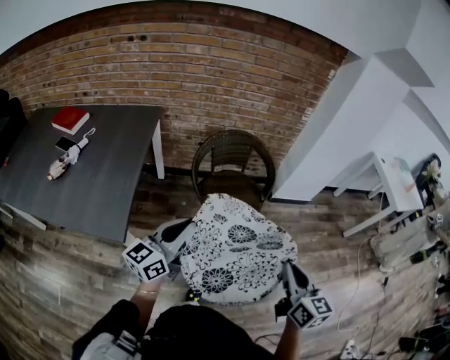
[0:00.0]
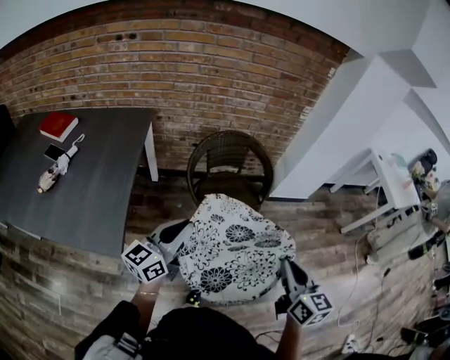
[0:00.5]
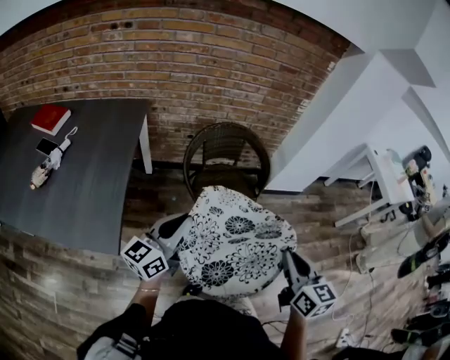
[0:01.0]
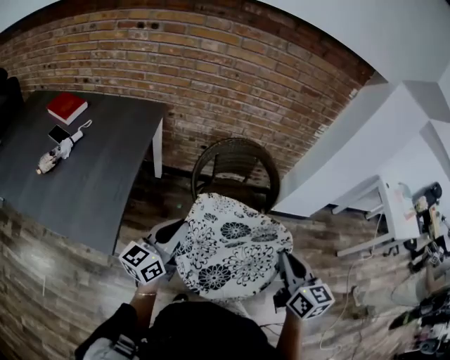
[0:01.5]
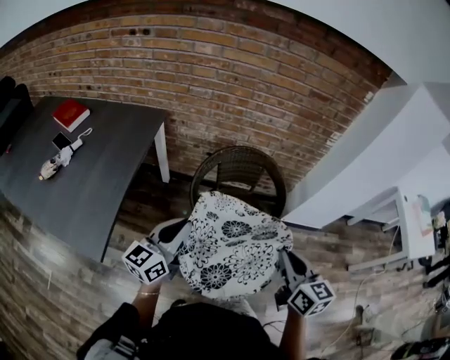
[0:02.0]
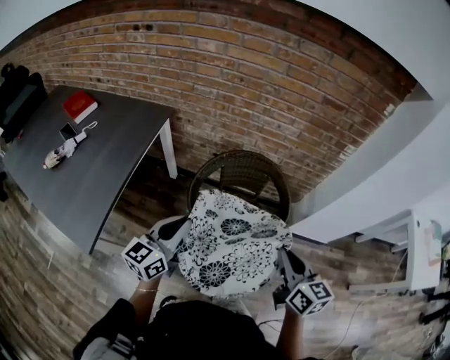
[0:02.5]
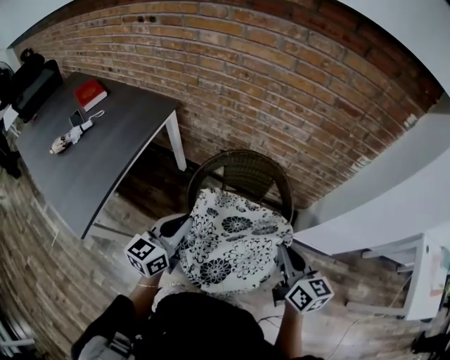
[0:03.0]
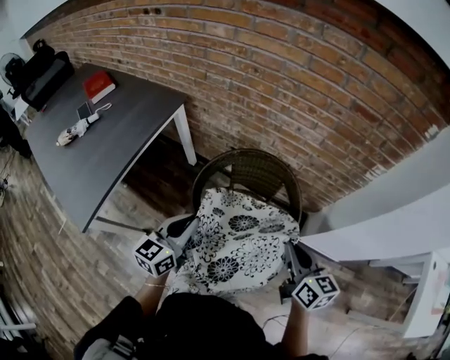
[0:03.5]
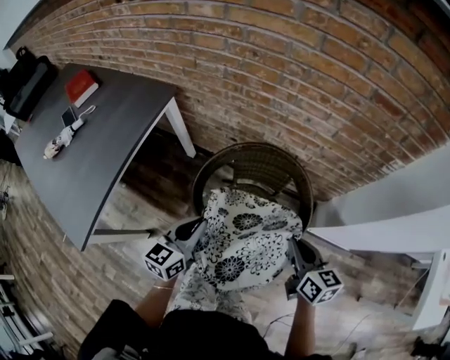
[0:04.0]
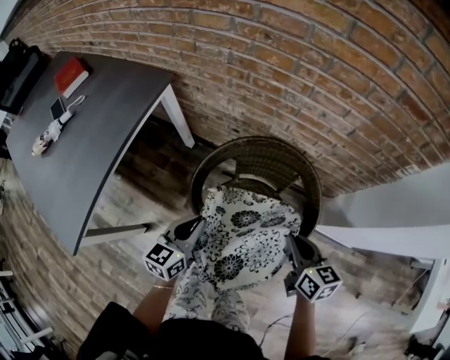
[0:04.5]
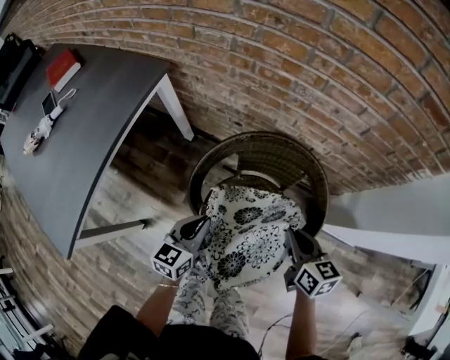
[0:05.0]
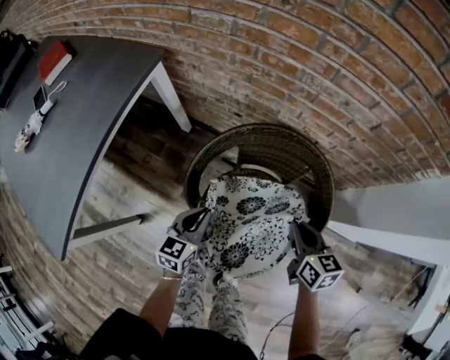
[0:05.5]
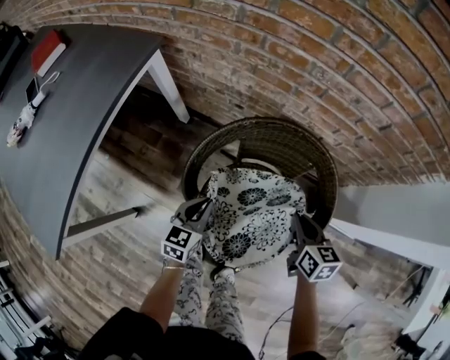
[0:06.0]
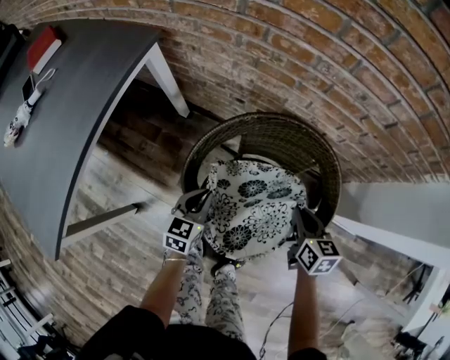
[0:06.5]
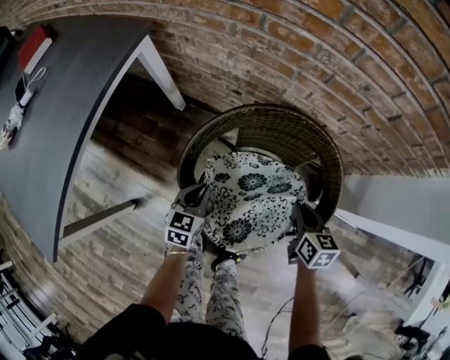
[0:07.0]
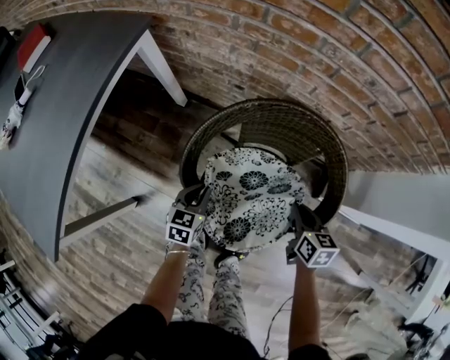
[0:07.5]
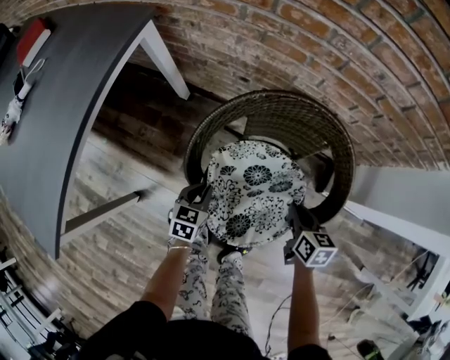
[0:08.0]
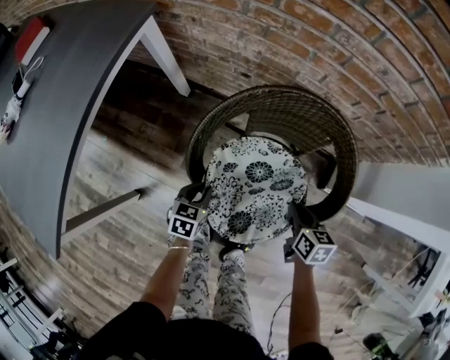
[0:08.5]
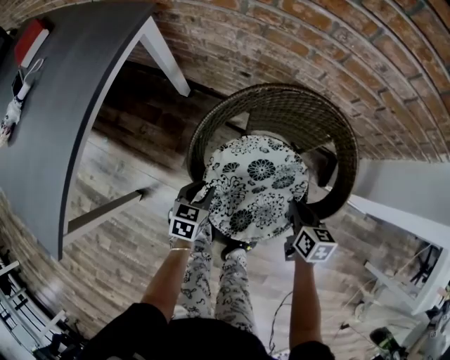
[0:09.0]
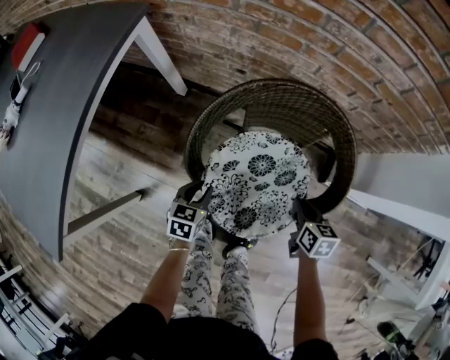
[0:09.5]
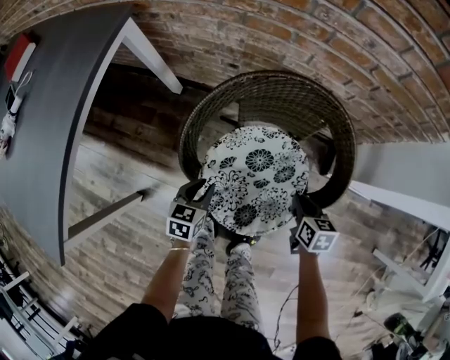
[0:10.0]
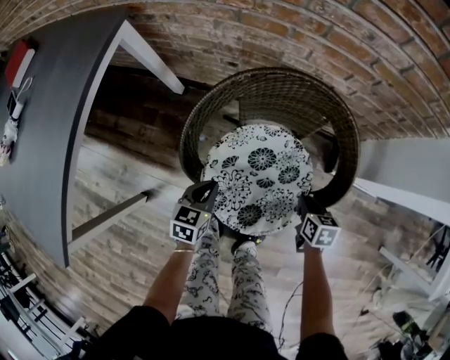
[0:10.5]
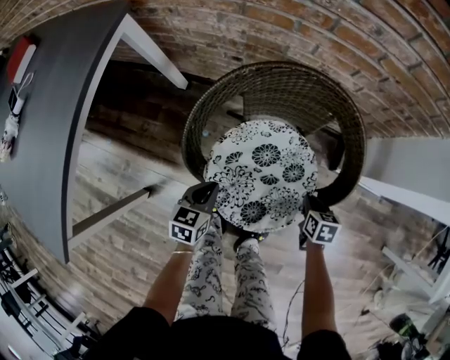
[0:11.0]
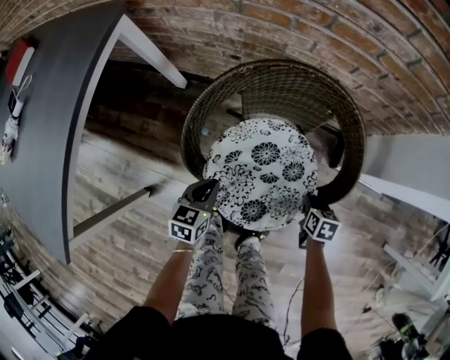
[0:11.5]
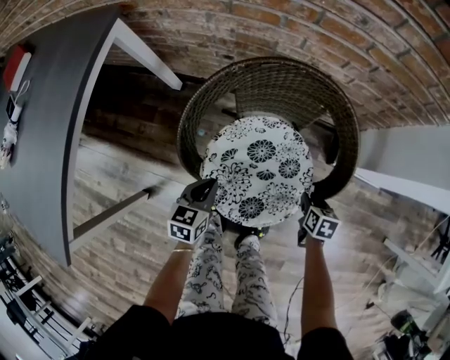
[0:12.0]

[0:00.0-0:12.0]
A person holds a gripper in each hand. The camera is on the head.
0:00.0 to 0:02.0: Both grippers travel together forward, roughly 20 cm.
0:02.0 to 0:04.0: The grippers both shift forward, downward and to the right by roughly 30 cm. The left gripper turns by some 20 degrees, while the right gripper turns by about 20 degrees.
0:04.0 to 0:06.0: The left gripper travels downward by approximately 25 cm, while the right gripper travels downward and forward by some 20 cm.
0:06.0 to 0:08.0: Both grippers travel together downward, roughly 10 cm.
0:08.0 to 0:10.0: The right gripper shifts by approximately 5 cm.
0:10.0 to 0:12.0: The right gripper travels to the right and downward by some 10 cm, and opens.

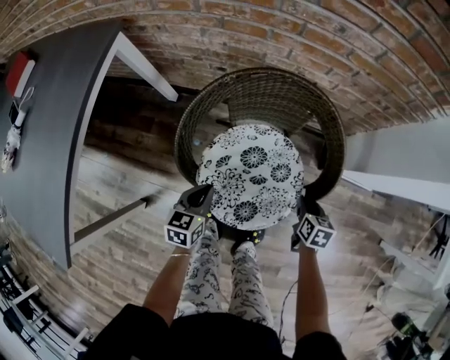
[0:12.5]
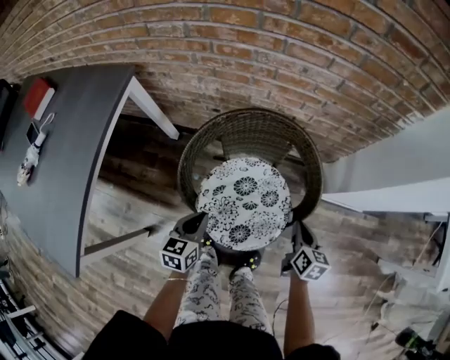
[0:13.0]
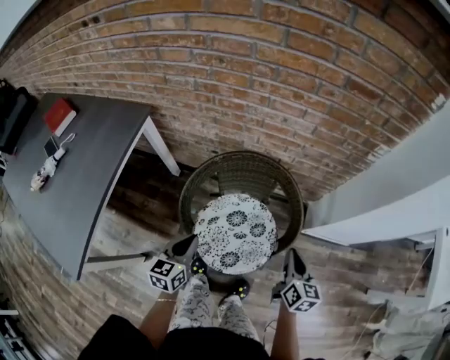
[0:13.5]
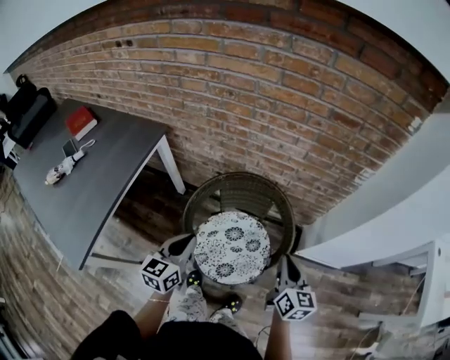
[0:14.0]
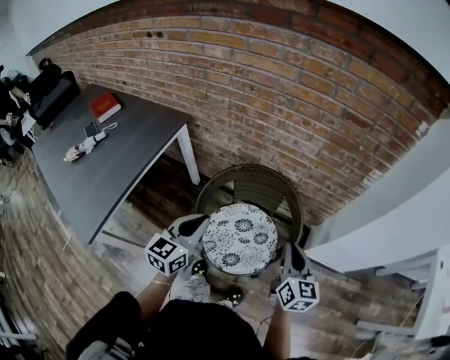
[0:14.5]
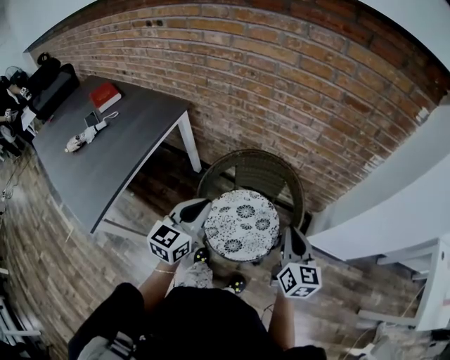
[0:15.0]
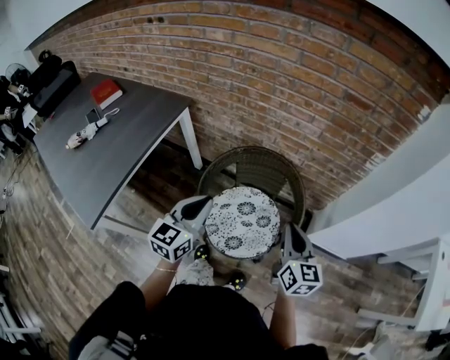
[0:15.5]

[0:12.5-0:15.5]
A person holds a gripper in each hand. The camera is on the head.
0:12.5 to 0:14.0: The grippers both shift upward by some 35 cm. The right gripper angles its fingers upward, by approximately 40 degrees; the left gripper turns by roughly 20 degrees.
0:14.0 to 0:15.5: The right gripper moves upward, approximately 5 cm. Meanwhile the left gripper heads upward, covering about 10 cm.

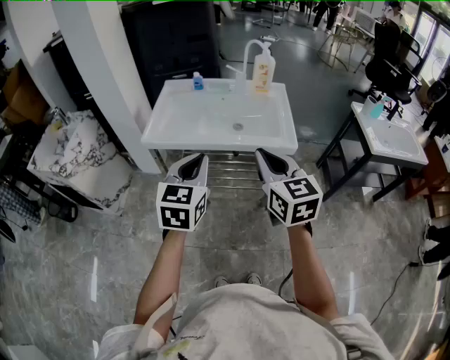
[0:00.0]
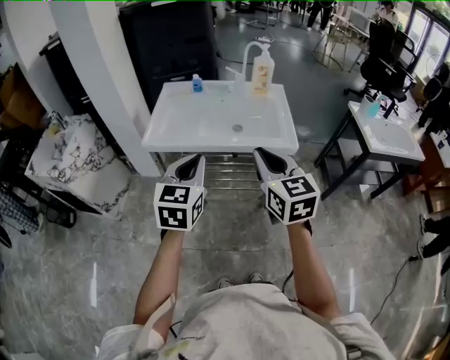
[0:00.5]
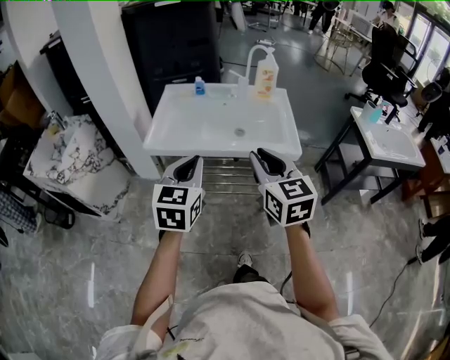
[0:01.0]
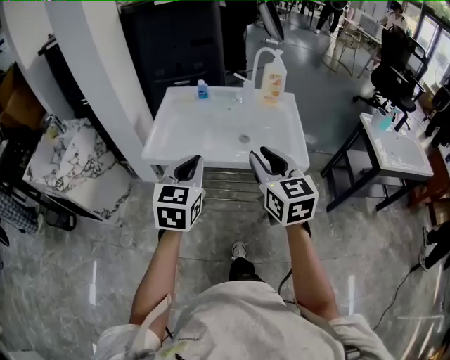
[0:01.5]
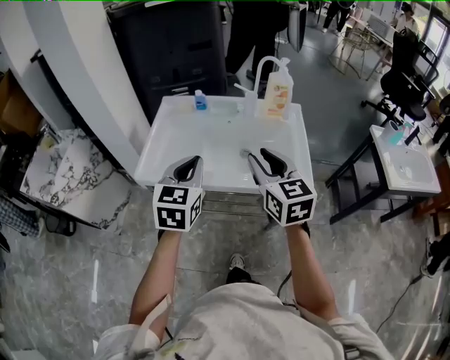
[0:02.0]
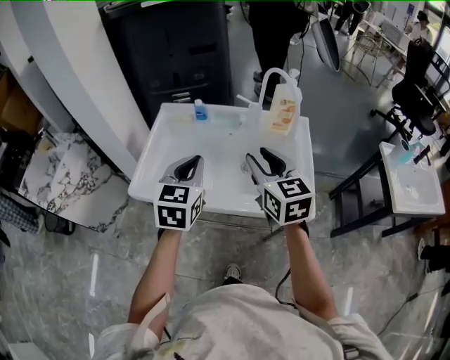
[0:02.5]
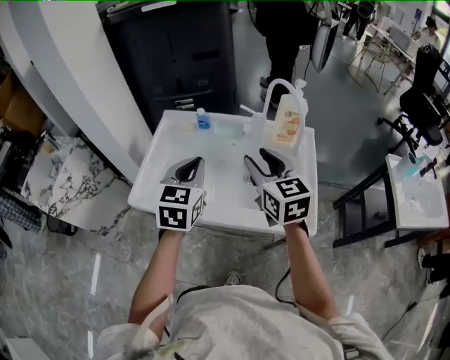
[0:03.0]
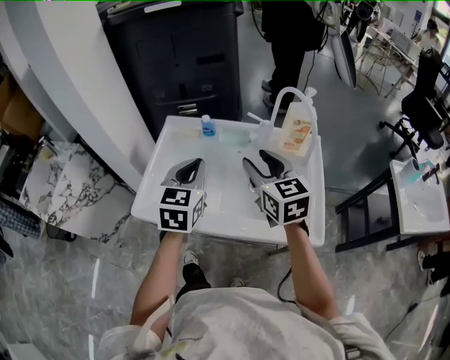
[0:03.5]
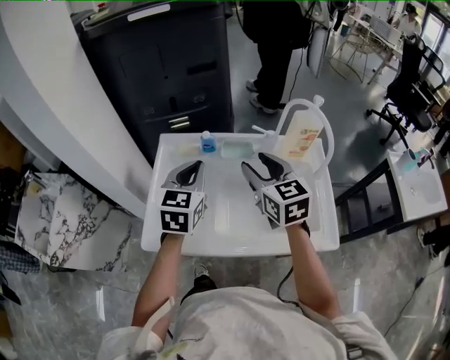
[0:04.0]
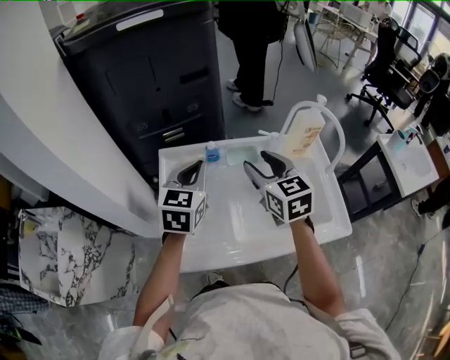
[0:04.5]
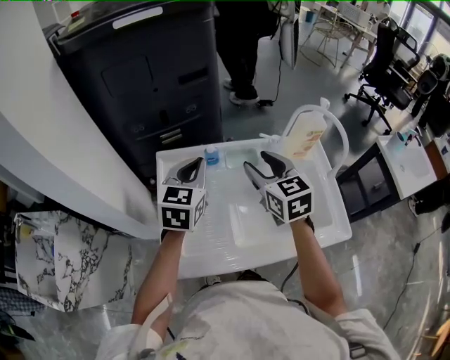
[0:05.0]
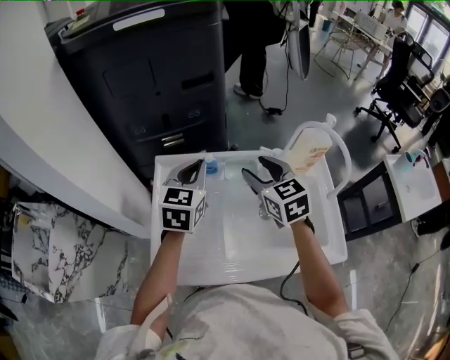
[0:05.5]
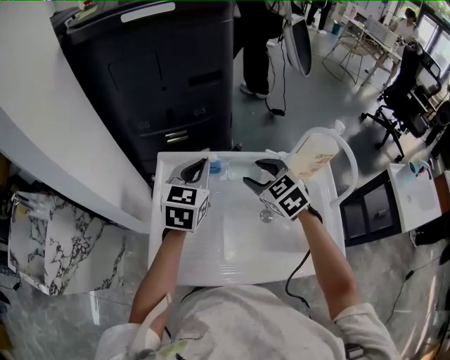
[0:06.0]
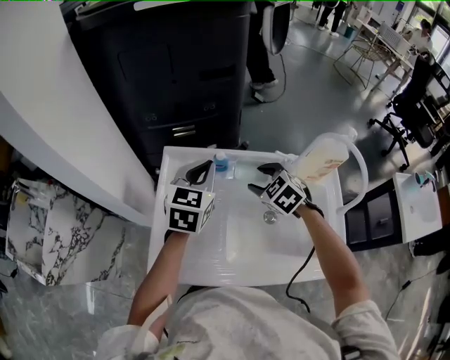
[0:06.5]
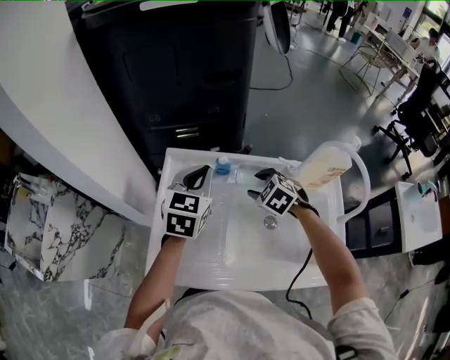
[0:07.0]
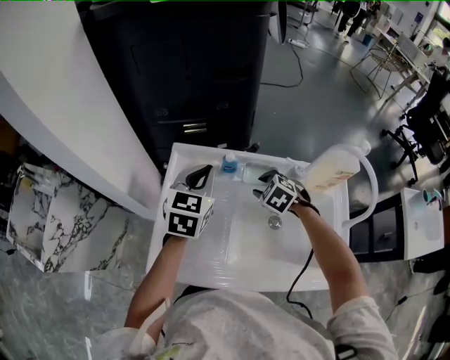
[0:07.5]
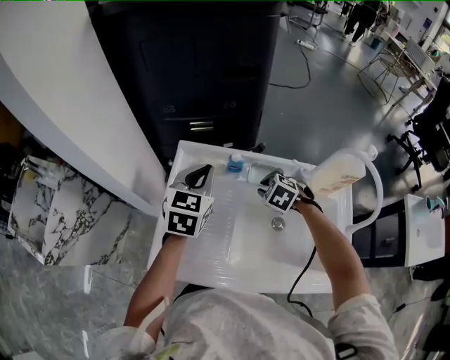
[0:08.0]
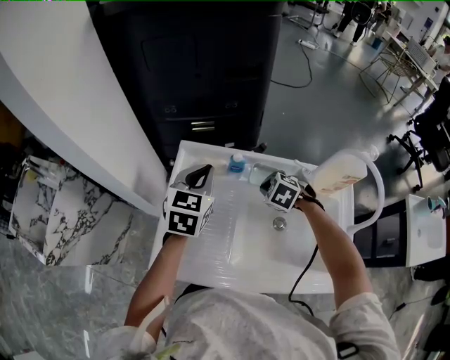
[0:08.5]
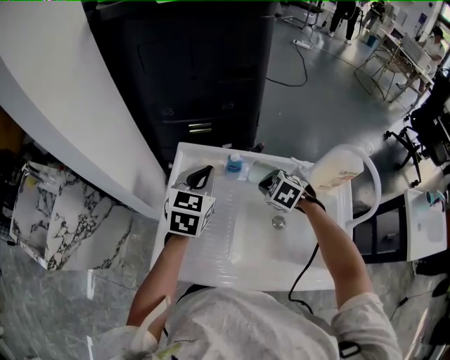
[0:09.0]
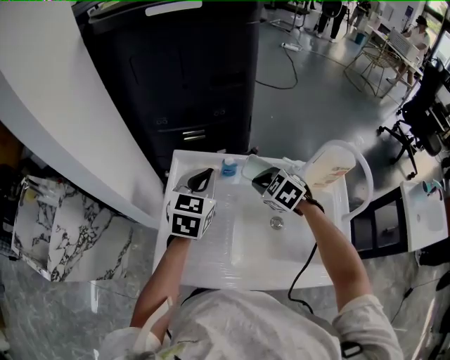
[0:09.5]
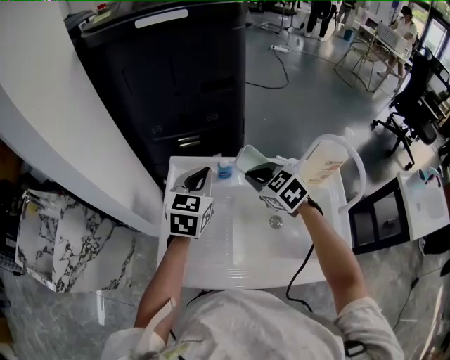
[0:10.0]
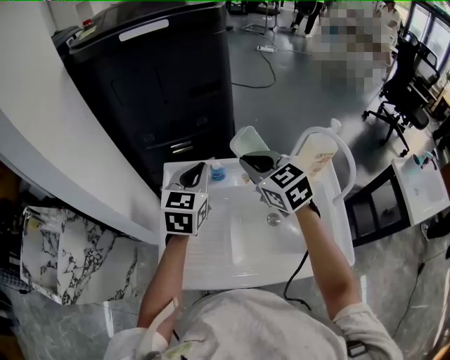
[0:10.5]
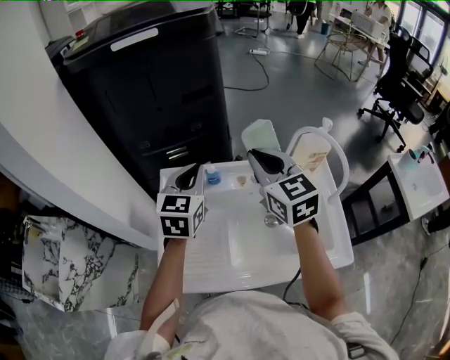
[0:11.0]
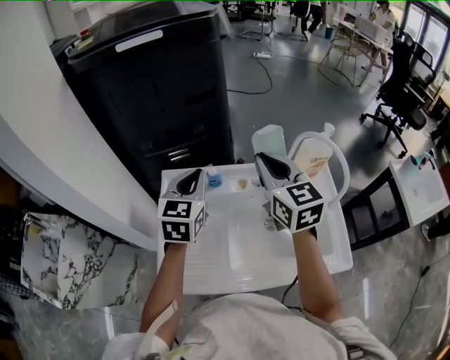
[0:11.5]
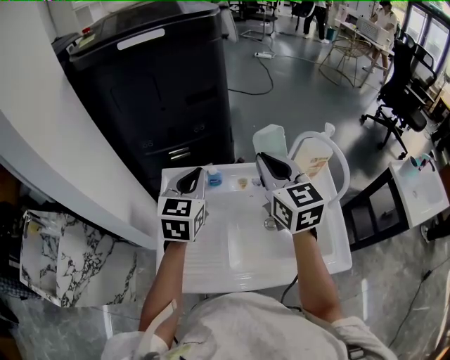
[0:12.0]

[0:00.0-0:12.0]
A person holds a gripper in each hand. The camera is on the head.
0:00.0 to 0:02.0: The grippers both shift forward by approximately 20 cm. The right gripper opens up.
0:02.0 to 0:04.0: Both grippers move forward, some 25 cm.
0:04.0 to 0:06.0: The left gripper shifts approximately 10 cm forward; the right gripper goes about 15 cm forward and downward, and swivels some 30 degrees.
0:06.0 to 0:08.0: The left gripper shifts by roughly 5 cm. The right gripper shifts some 15 cm downward, swivels roughly 40 degrees, and closes.
0:08.0 to 0:10.0: The right gripper is displaced upward by approximately 15 cm, and swivels approximately 30 degrees.
0:10.0 to 0:12.0: The right gripper moves upward, some 15 cm, and angles its fingers upward, by about 30 degrees.
